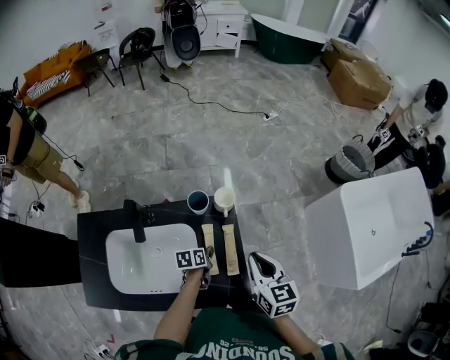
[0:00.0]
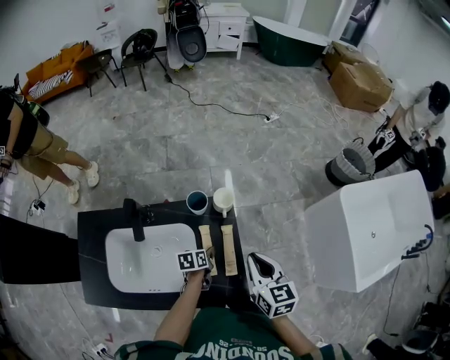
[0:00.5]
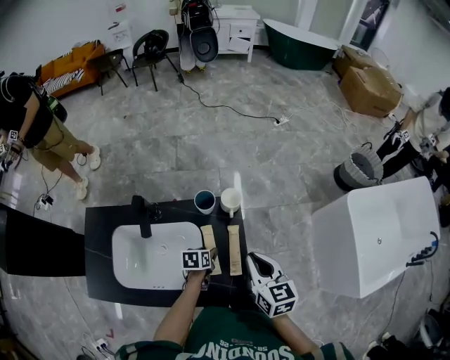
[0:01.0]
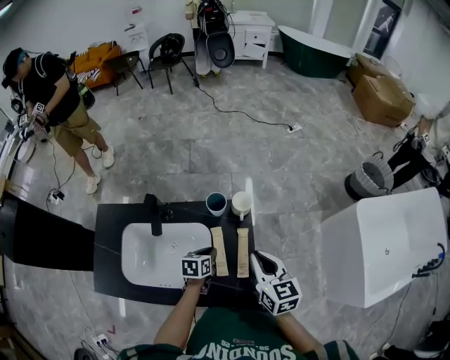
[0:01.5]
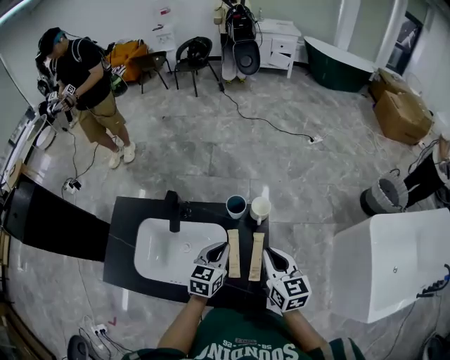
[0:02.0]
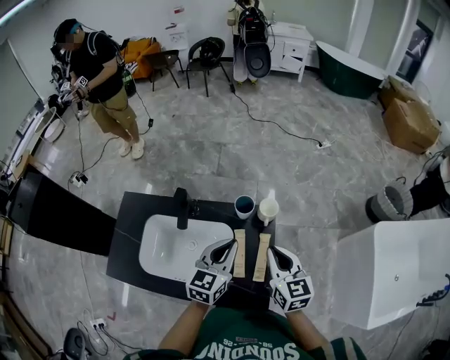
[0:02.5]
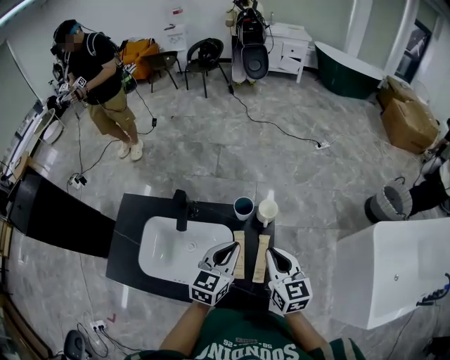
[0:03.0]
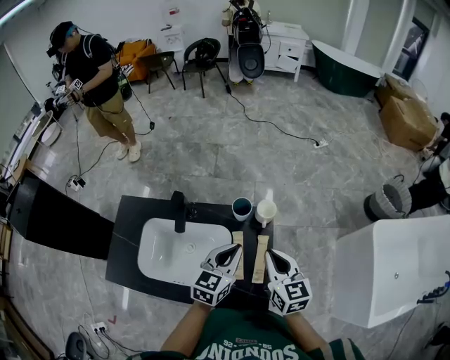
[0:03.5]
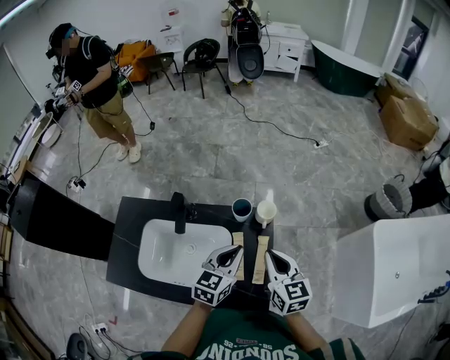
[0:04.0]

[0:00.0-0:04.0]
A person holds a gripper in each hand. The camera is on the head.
0:00.0 to 0:02.0: The right gripper moves some 5 cm, while the left gripper moves upward, approximately 20 cm, turns by roughly 50 degrees, and opens and closes again.
0:02.0 to 0:04.0: The left gripper heads upward, covering approximately 5 cm.

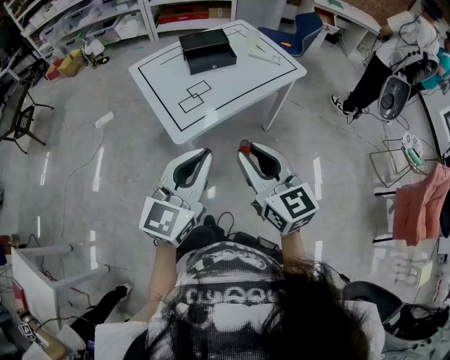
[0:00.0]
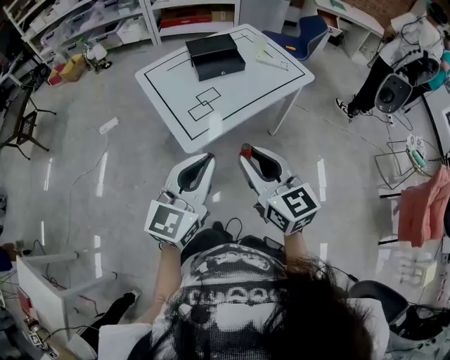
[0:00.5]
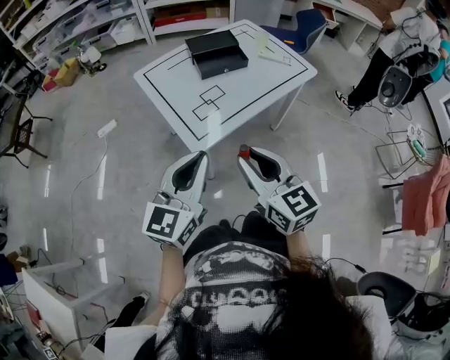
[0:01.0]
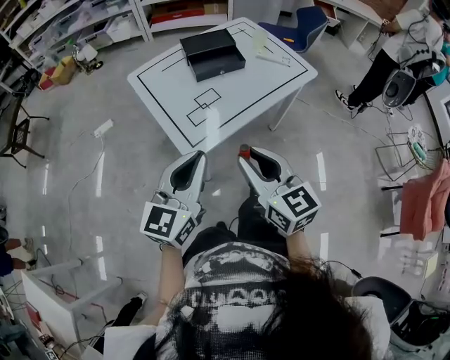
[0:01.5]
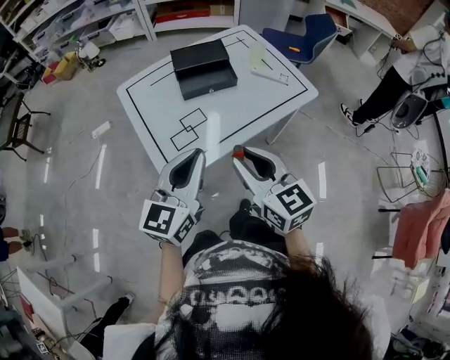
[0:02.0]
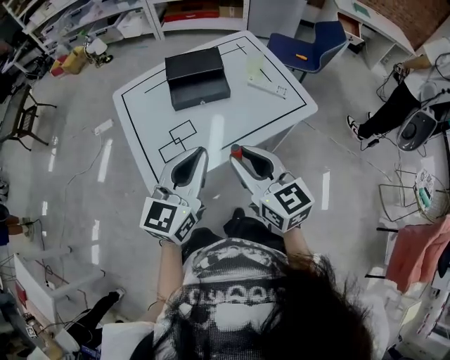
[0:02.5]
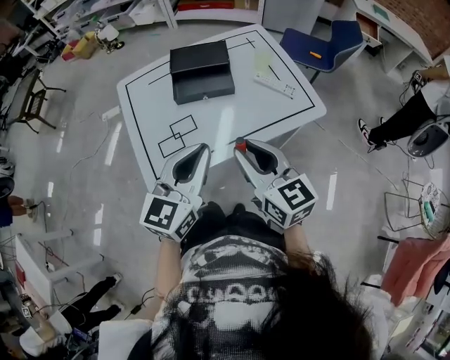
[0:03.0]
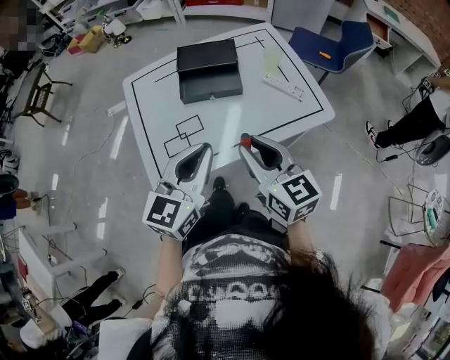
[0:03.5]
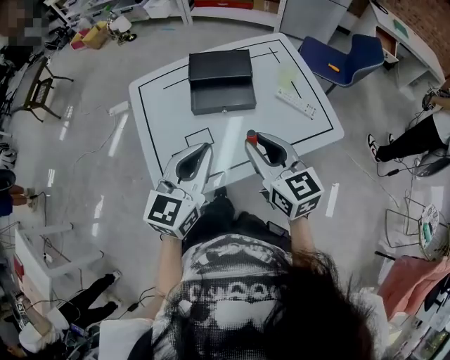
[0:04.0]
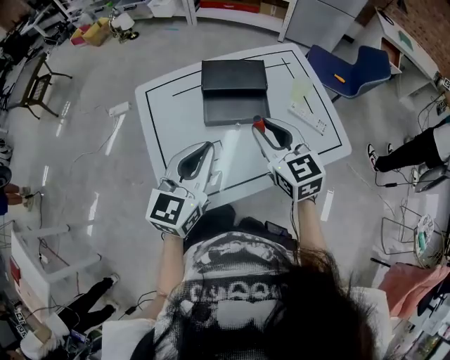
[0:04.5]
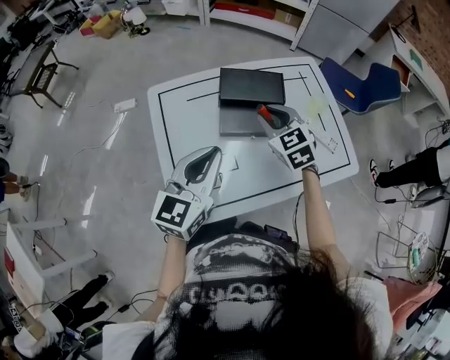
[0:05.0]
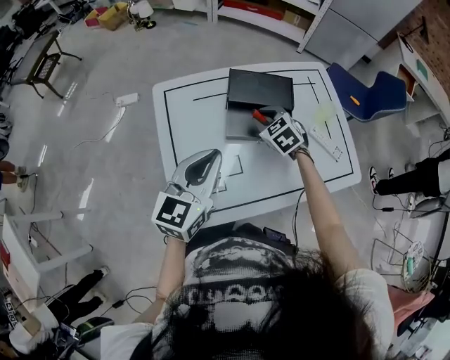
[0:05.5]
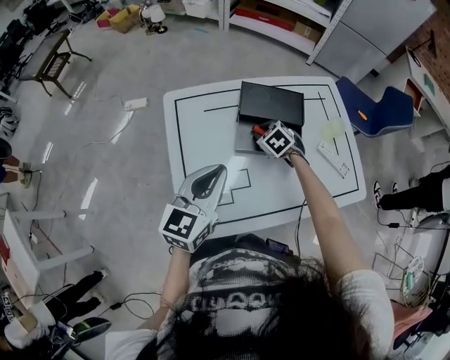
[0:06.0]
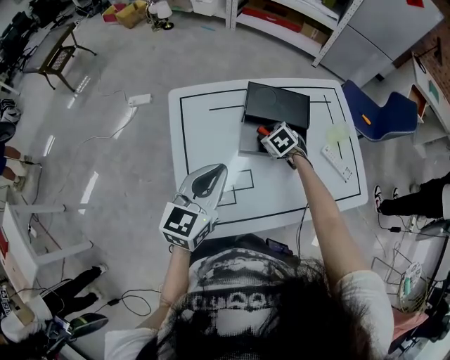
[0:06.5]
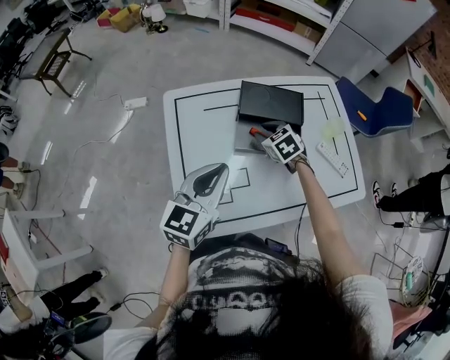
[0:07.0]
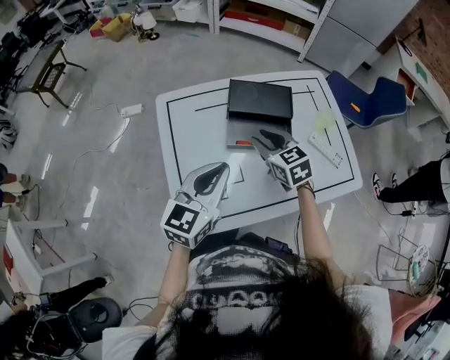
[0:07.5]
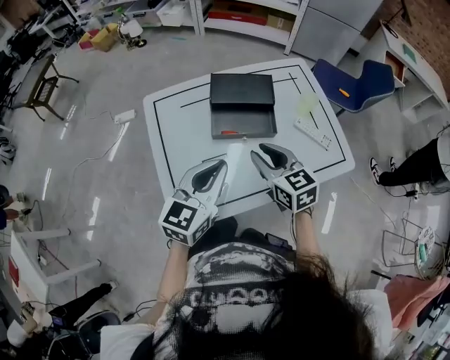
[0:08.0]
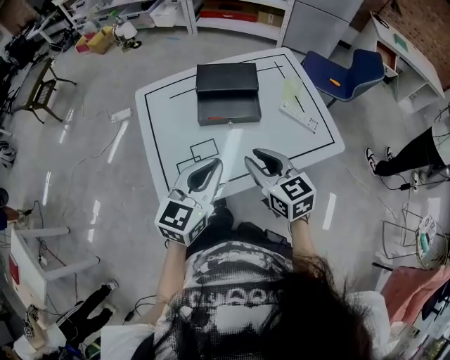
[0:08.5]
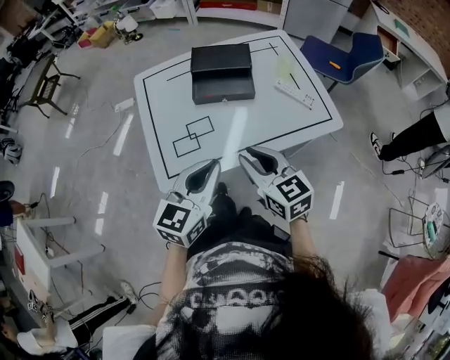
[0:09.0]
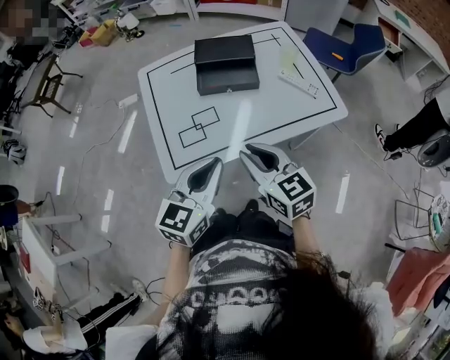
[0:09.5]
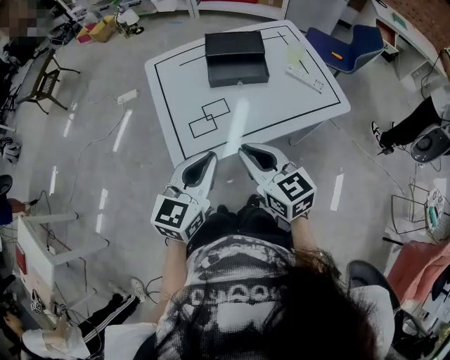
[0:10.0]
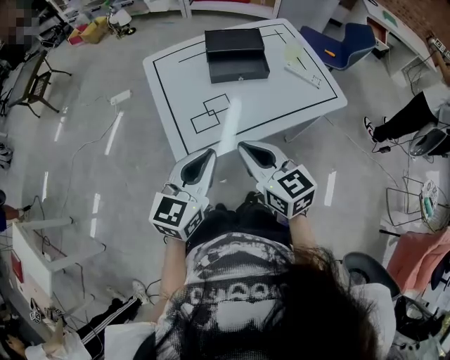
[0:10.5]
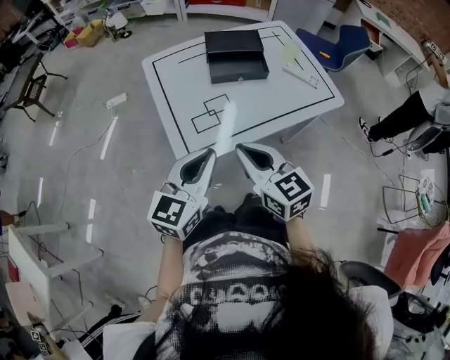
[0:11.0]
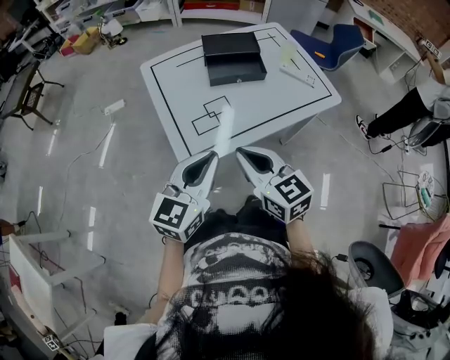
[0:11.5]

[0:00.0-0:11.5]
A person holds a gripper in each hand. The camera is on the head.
0:00.0 to 0:02.0: The two grippers go some 25 cm forward.
0:02.0 to 0:04.0: Both grippers travel together forward and to the right, about 20 cm.
0:04.0 to 0:06.0: The left gripper goes roughly 20 cm to the left and forward, while the right gripper heads forward, downward and to the left, covering about 40 cm, and tips its fingers downward by about 50 degrees.
0:06.0 to 0:07.5: The right gripper shifts about 15 cm upward and backward, and turns by roughly 30 degrees.
0:07.5 to 0:09.5: The right gripper shifts roughly 30 cm backward. The left gripper goes roughly 25 cm backward and to the right.
0:09.5 to 0:11.5: The left gripper goes about 15 cm to the left, while the right gripper travels to the left and backward by about 15 cm.

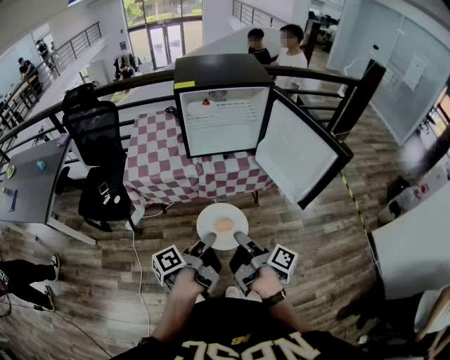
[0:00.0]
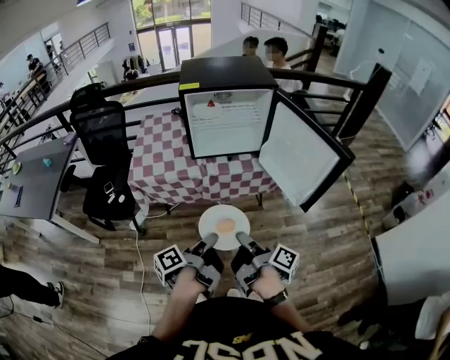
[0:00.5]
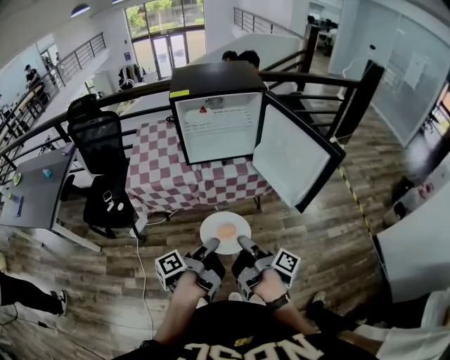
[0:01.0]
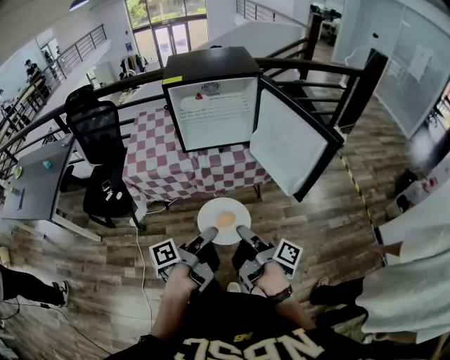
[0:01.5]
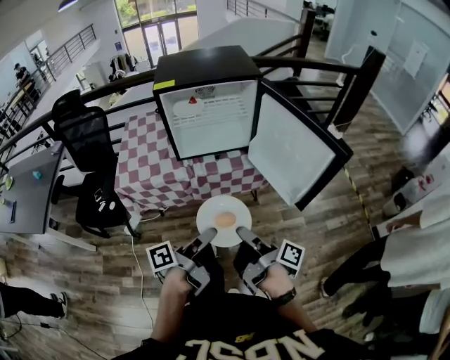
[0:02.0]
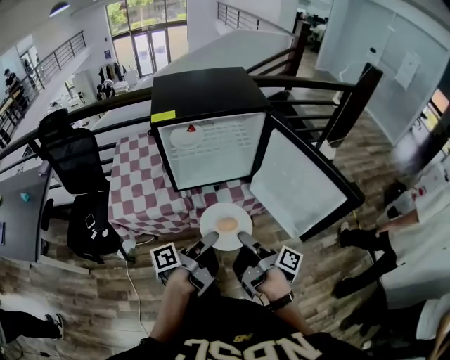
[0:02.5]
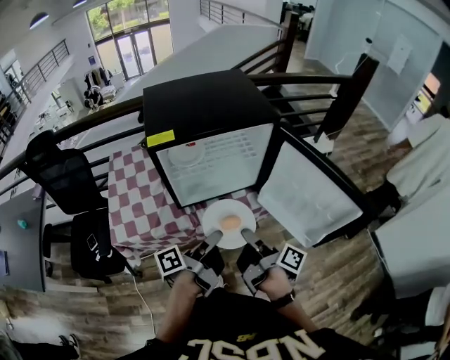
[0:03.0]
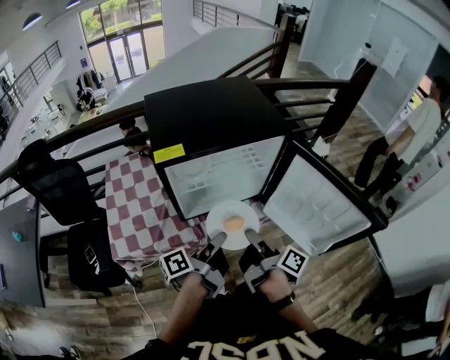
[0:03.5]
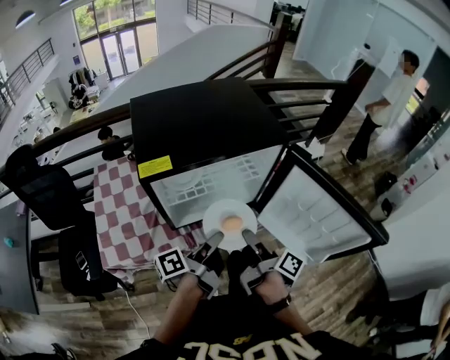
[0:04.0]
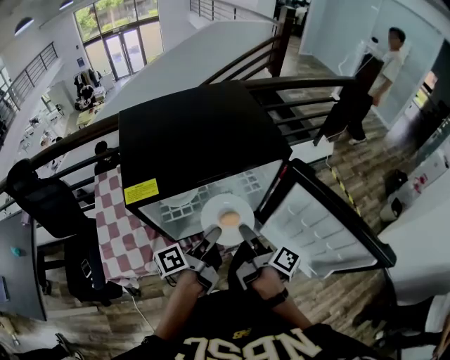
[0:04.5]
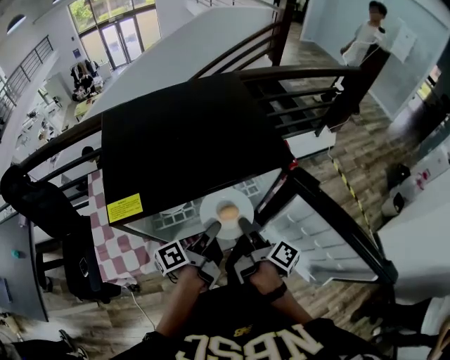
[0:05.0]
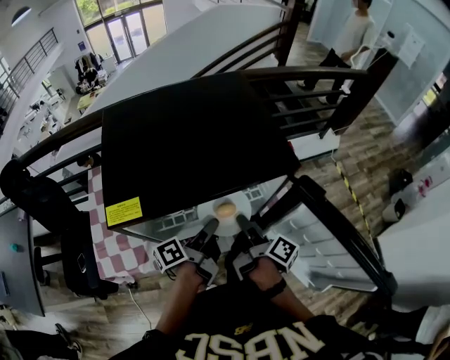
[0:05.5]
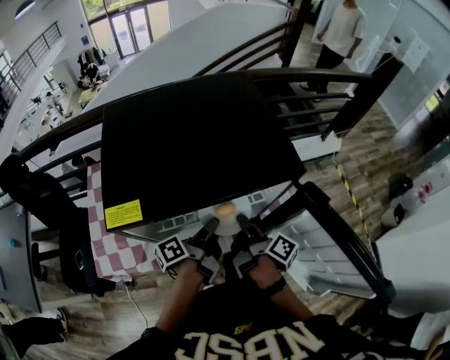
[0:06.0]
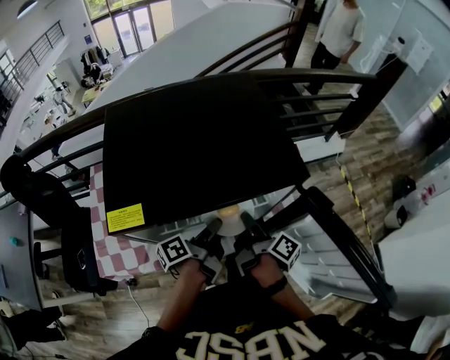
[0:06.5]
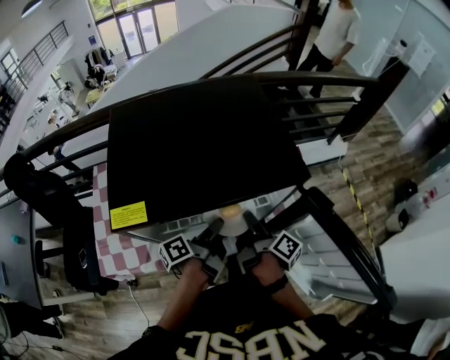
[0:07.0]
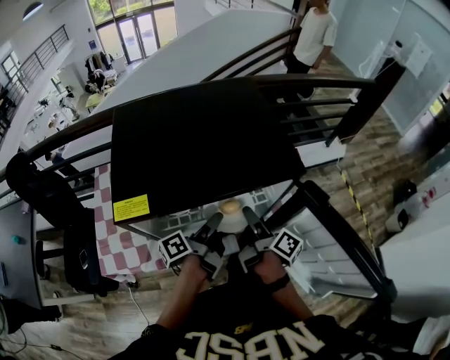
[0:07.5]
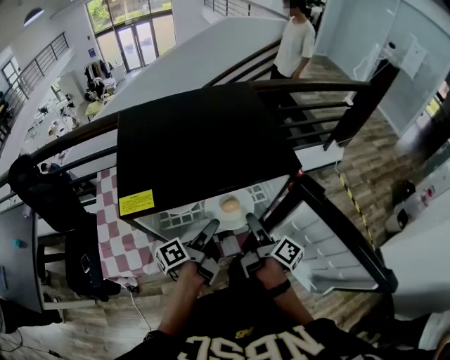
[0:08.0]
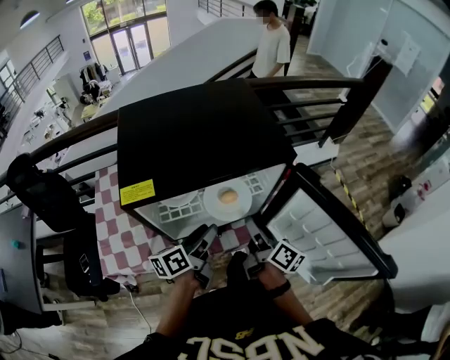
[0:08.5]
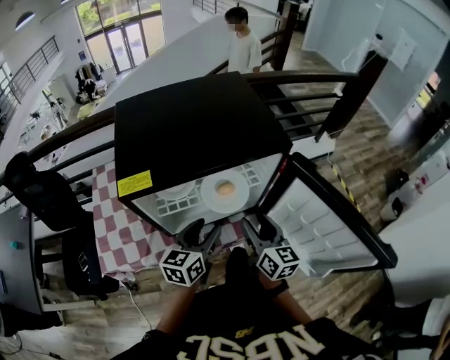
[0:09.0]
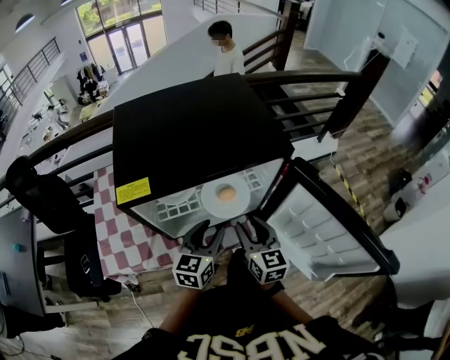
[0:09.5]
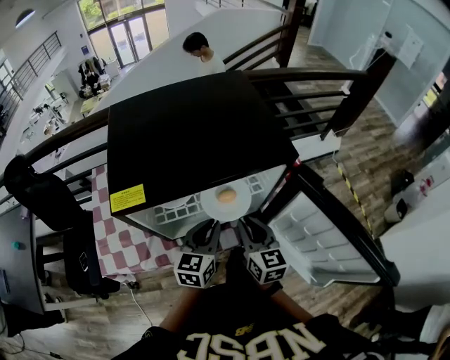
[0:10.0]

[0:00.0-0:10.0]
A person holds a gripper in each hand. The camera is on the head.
0:00.0 to 0:02.0: The right gripper goes about 5 cm forward. The left gripper shifts approximately 10 cm to the right and forward.
0:02.0 to 0:04.0: Both grippers travel together forward, about 30 cm. The right gripper rotates roughly 20 degrees.
0:04.0 to 0:06.0: The right gripper shifts roughly 15 cm forward. The left gripper moves forward and downward, some 20 cm.
0:06.0 to 0:08.0: The left gripper opens up; the right gripper opens its fingers.
0:08.0 to 0:10.0: The right gripper rolls counterclockwise, seen from behind, by some 70 degrees, and closes up. The left gripper rotates around the line of its fingers by approximately 70 degrees, clockwise from behind, and closes its fingers.

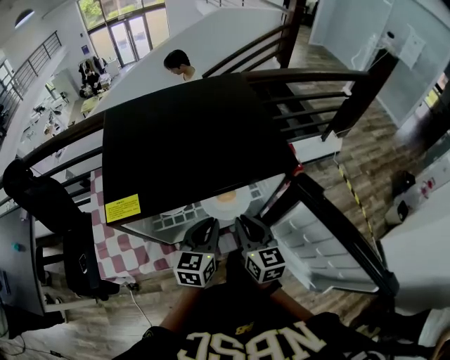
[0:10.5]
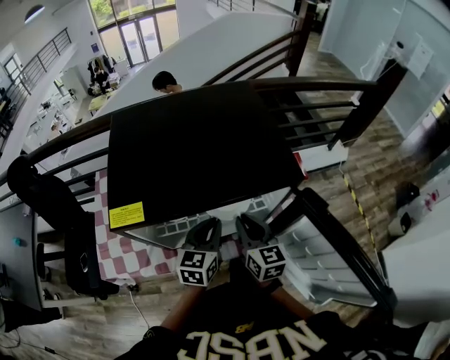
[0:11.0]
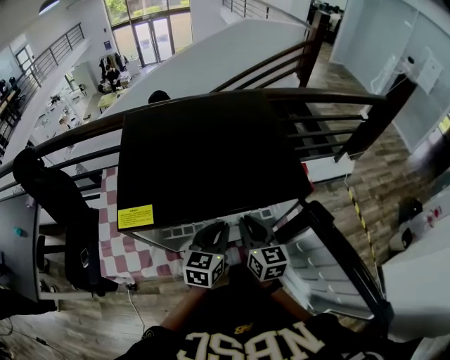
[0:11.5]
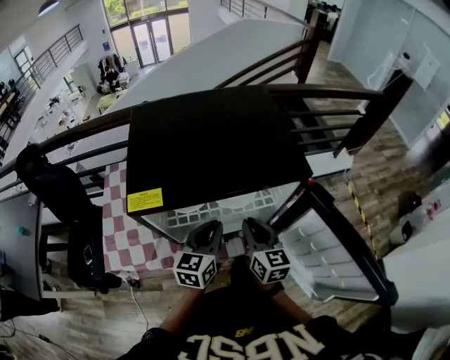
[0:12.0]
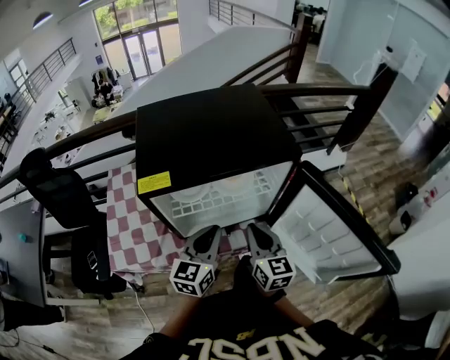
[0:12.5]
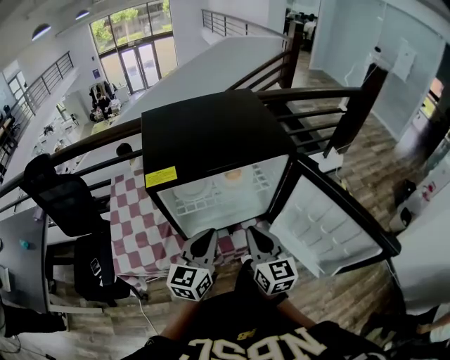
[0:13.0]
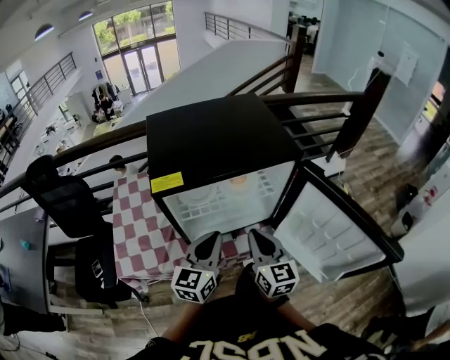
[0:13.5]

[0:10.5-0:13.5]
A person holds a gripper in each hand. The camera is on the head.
0:10.5 to 0:12.0: The grippers stay close to where they were, moving slightly.
0:12.0 to 0:13.5: The grippers both shift backward and upward by about 10 cm.
